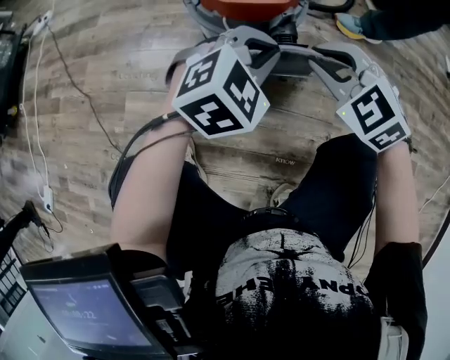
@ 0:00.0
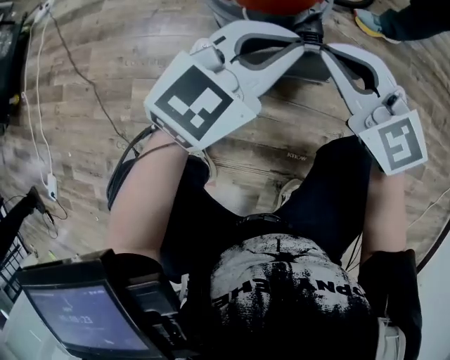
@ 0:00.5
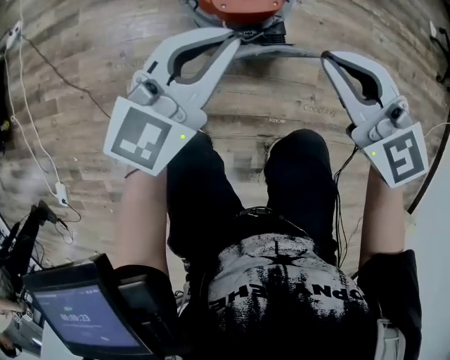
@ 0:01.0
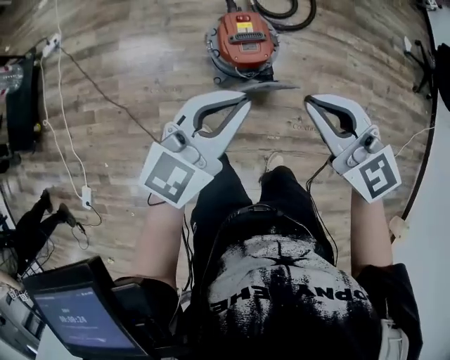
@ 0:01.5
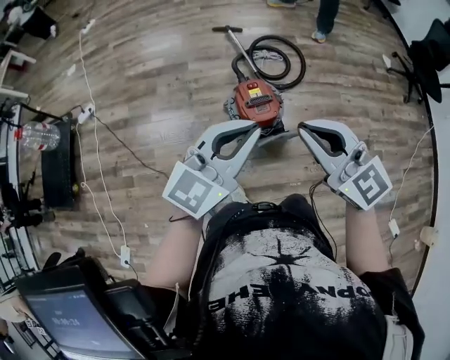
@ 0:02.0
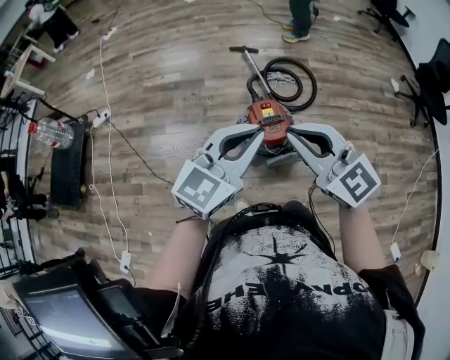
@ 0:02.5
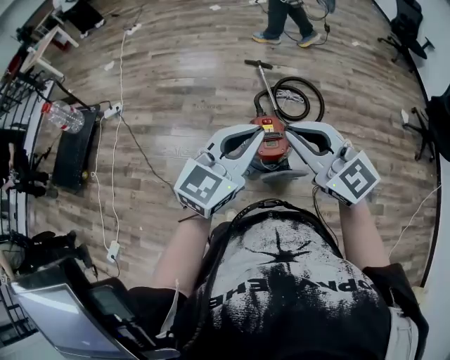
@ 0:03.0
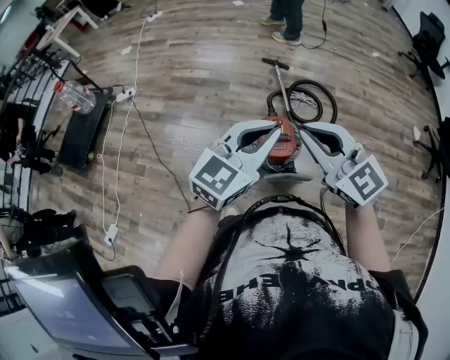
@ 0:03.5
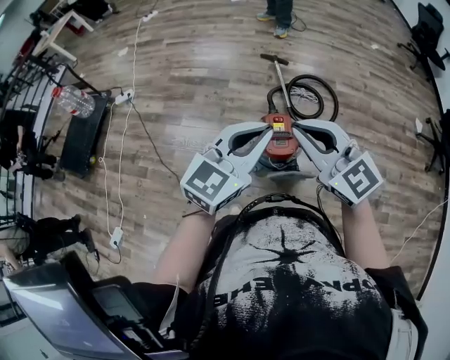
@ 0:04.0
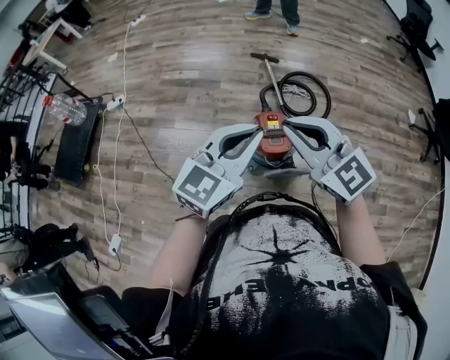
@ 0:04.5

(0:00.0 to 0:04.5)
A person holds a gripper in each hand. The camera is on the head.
0:00.0 - 0:02.0: Both grippers travel together upward, roughly 60 cm. The left gripper angles its fingers upward, by roughly 40 degrees; the right gripper angles its fingers upward, by about 40 degrees.
0:02.0 - 0:04.5: The left gripper shifts by some 5 cm, while the right gripper travels forward by approximately 5 cm.

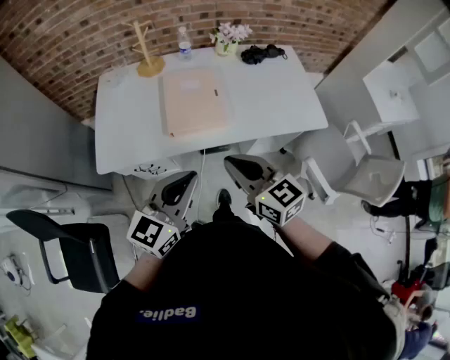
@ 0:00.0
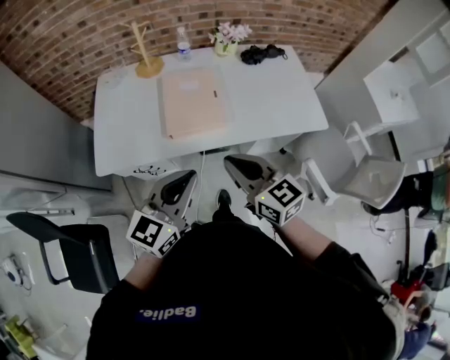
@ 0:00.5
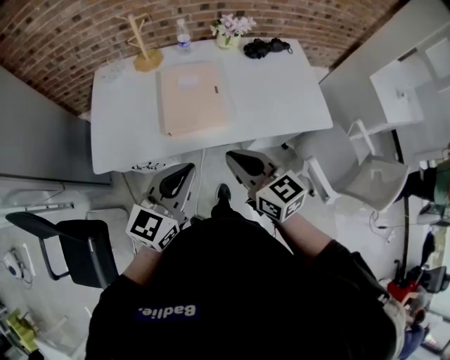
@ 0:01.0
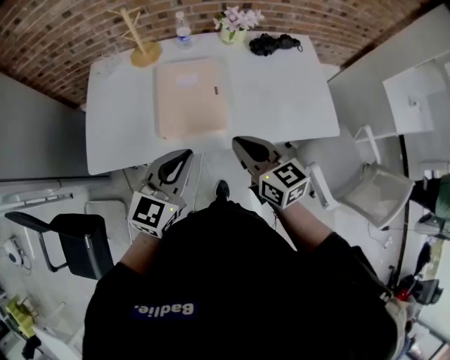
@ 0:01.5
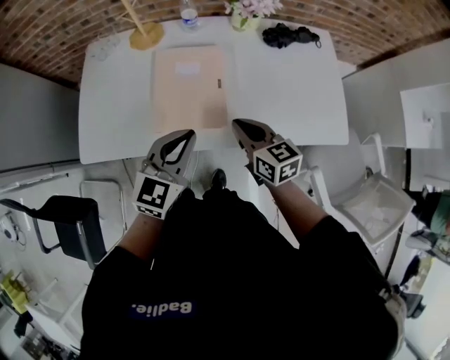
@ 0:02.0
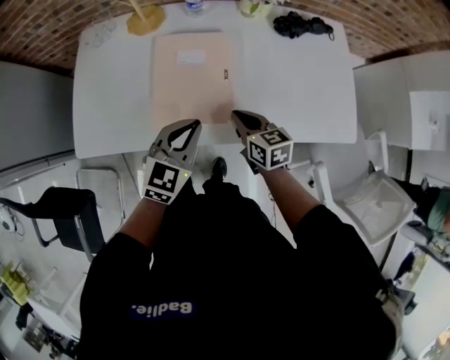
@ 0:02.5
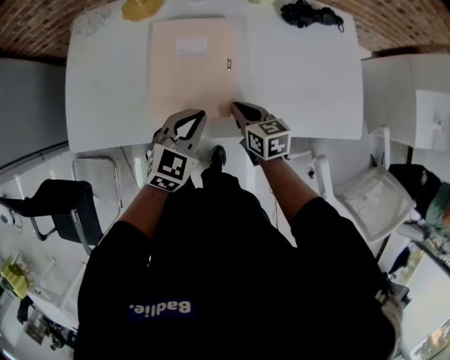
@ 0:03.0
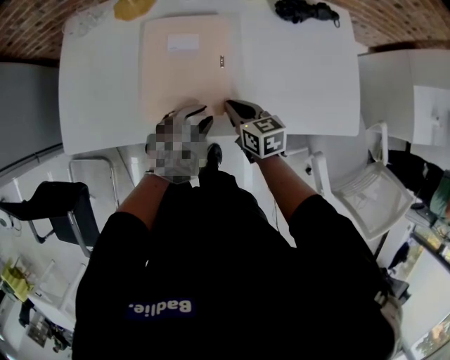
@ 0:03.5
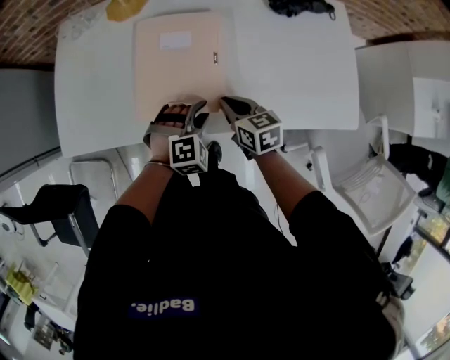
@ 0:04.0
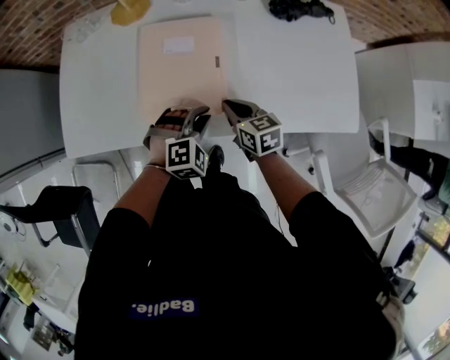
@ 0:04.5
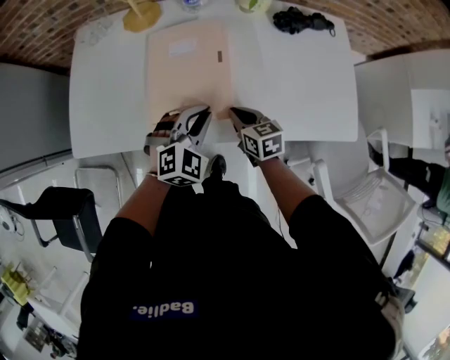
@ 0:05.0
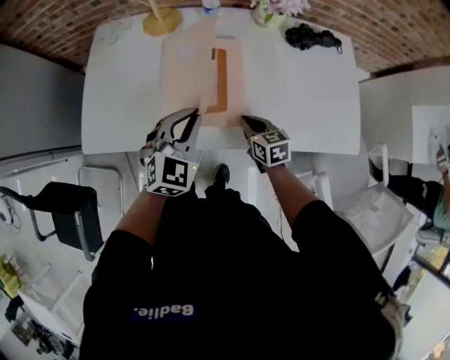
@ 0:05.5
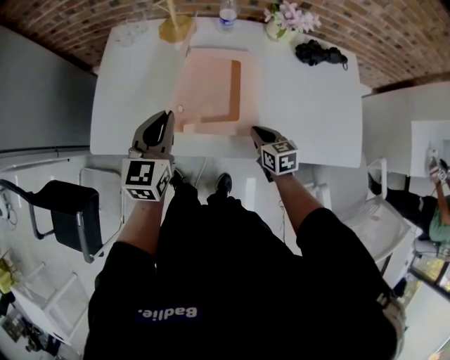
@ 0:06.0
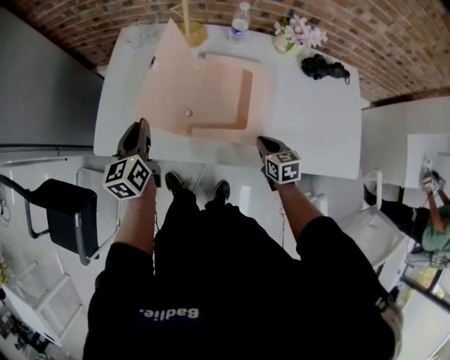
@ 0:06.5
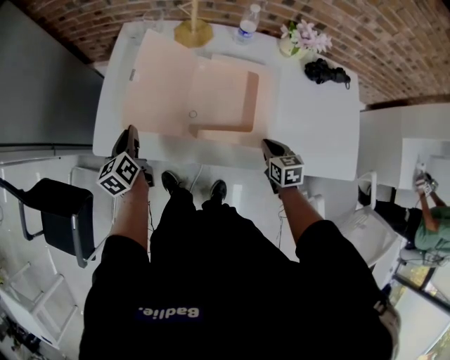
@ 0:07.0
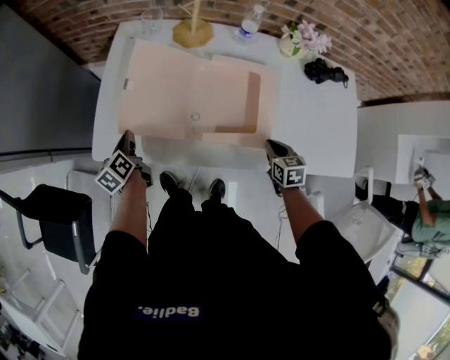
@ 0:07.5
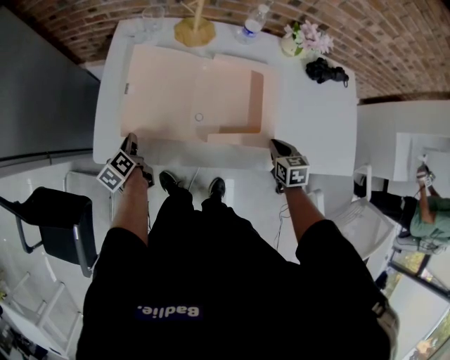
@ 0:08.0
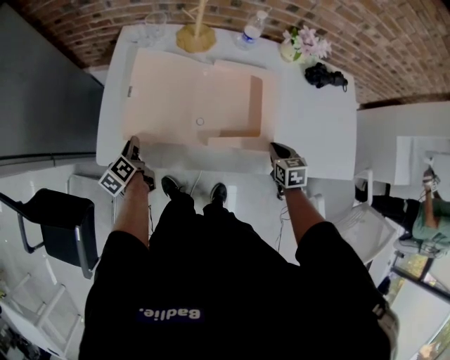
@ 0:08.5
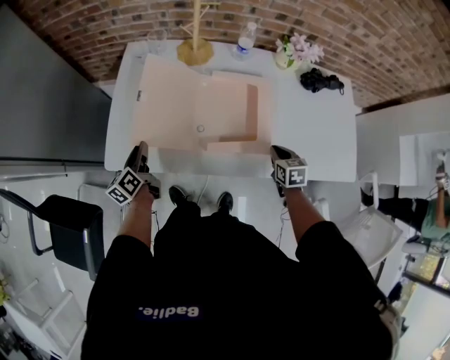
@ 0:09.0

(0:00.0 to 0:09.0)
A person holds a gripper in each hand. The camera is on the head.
0:00.0 - 0:02.0: The grippers both shift forward and downward by approximately 25 cm.
0:02.0 - 0:04.5: The grippers both shift downward by about 15 cm. The left gripper rotates around the line of its fingers by approximately 40 degrees, clockwise from behind, and opens, then closes again.
0:04.5 - 0:07.0: The left gripper moves to the left, approximately 40 cm, and rolls counterclockwise, seen from behind, by about 100 degrees.
0:07.0 - 0:09.0: The left gripper goes downward and returns, some 10 cm each way.

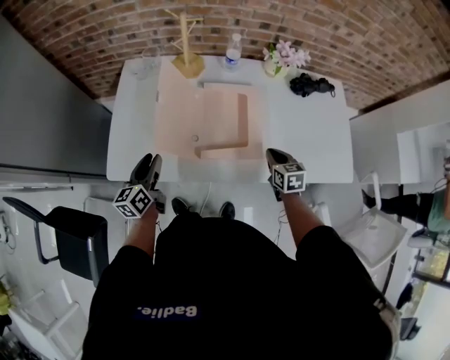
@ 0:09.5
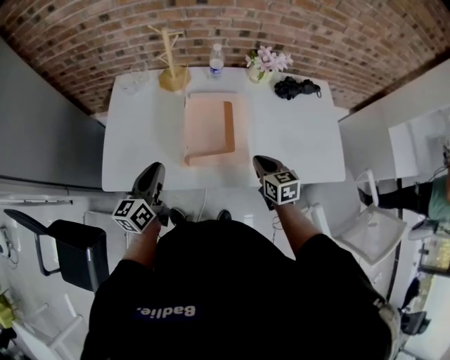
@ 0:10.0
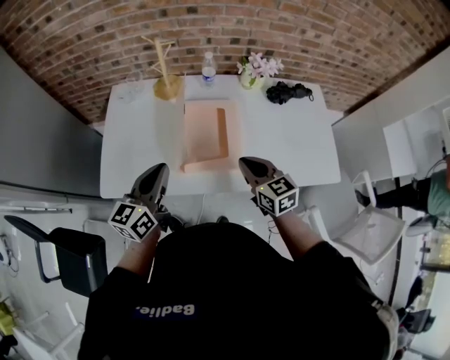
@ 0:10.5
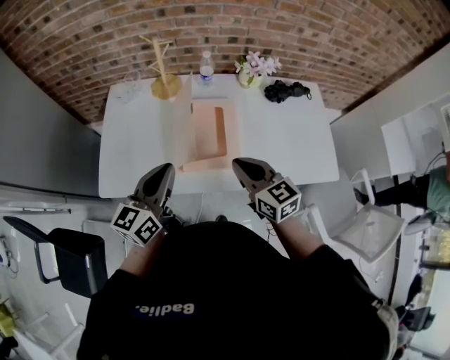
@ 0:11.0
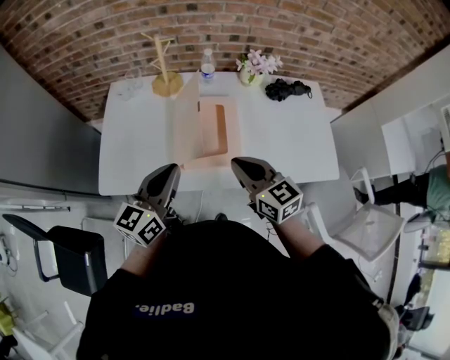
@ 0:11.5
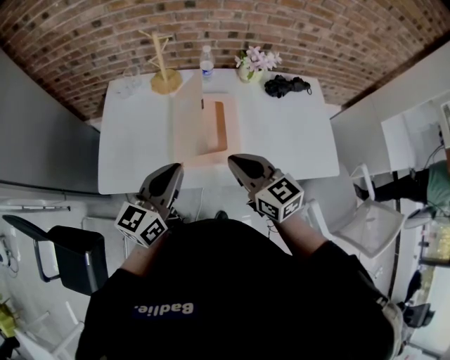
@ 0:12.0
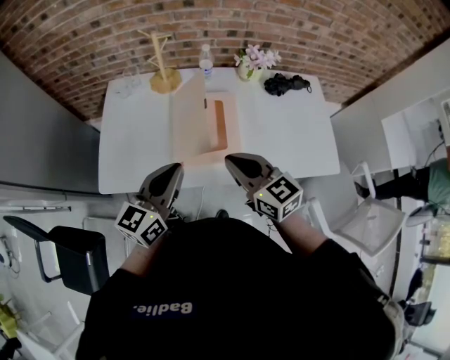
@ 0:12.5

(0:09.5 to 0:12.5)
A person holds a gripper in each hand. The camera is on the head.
0:09.5 - 0:11.0: The left gripper goes some 25 cm upward and to the right, swivels roughly 20 degrees, and closes. The right gripper is displaced upward and to the left by some 20 cm, and rotates approximately 30 degrees.
0:11.0 - 0:12.5: There are only small adjustments of the grippers.

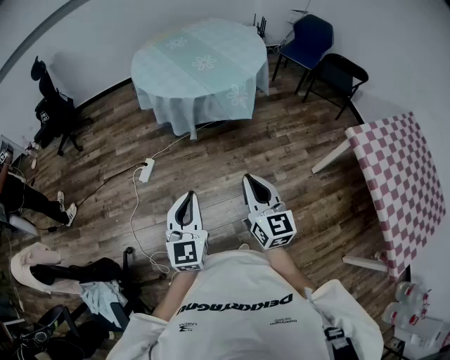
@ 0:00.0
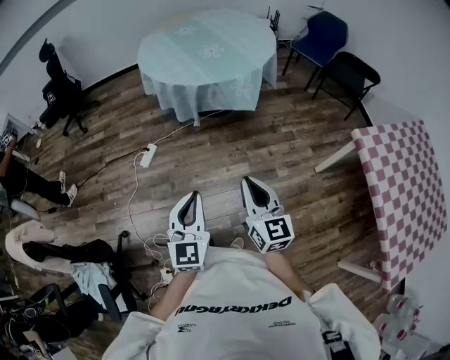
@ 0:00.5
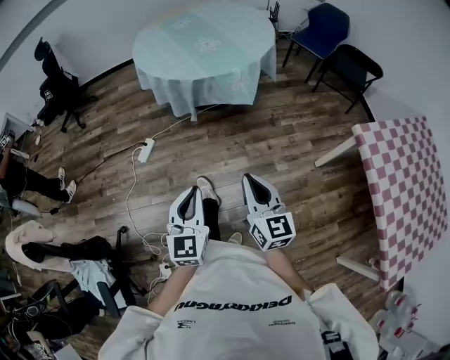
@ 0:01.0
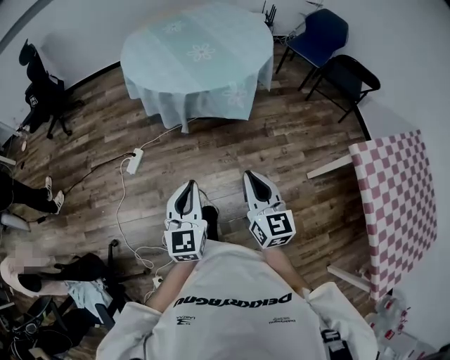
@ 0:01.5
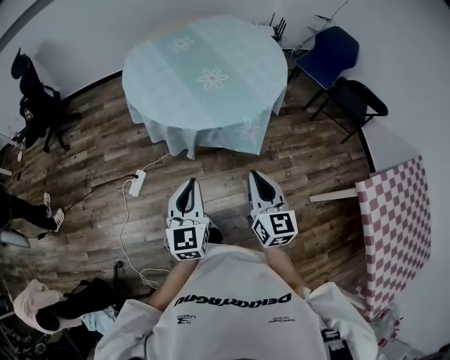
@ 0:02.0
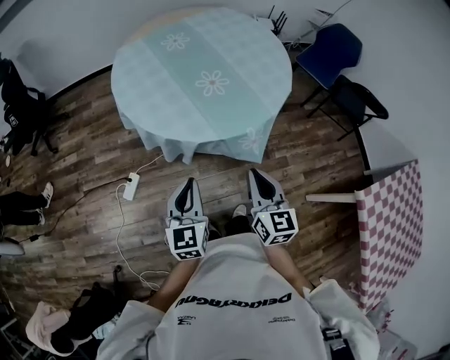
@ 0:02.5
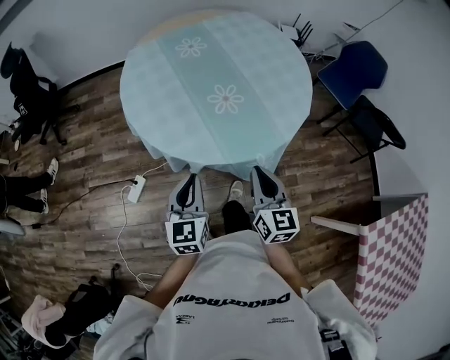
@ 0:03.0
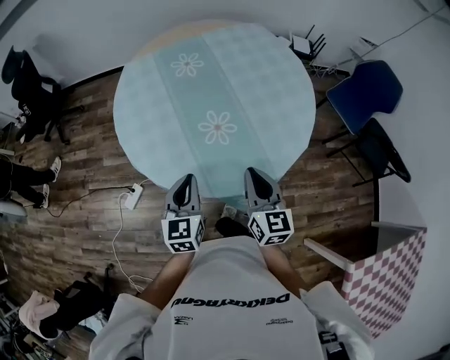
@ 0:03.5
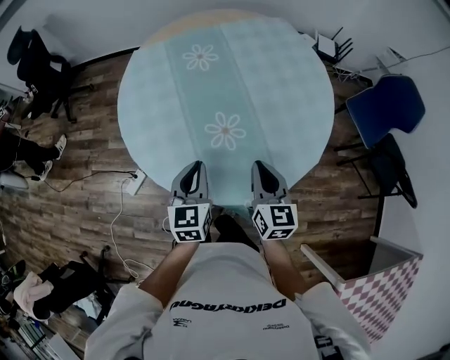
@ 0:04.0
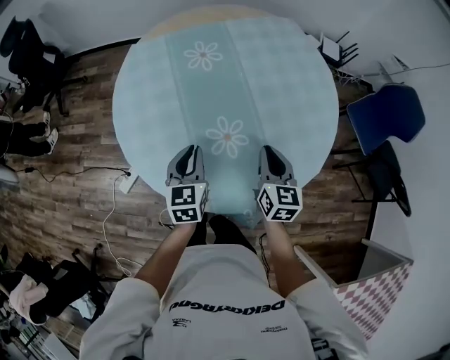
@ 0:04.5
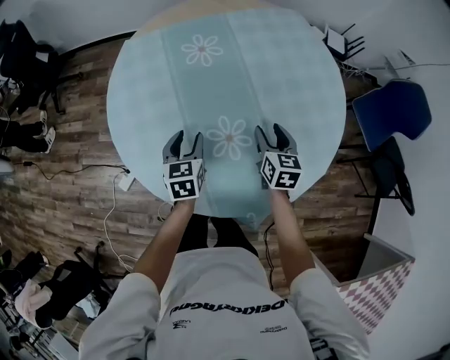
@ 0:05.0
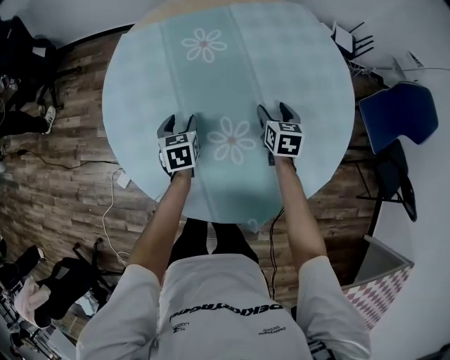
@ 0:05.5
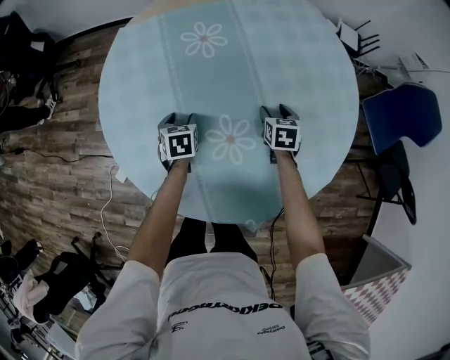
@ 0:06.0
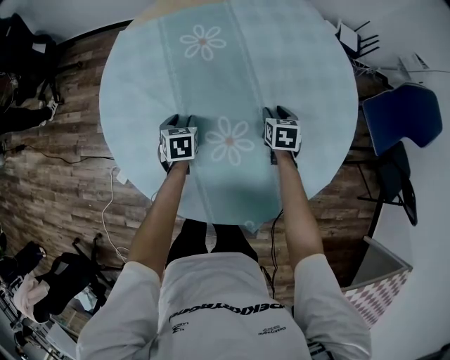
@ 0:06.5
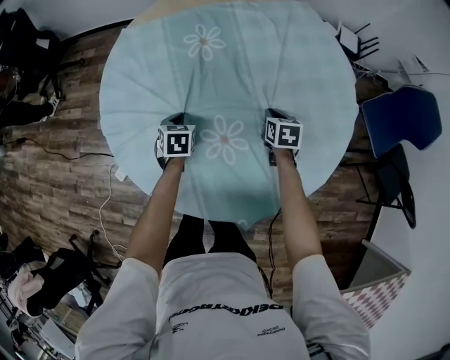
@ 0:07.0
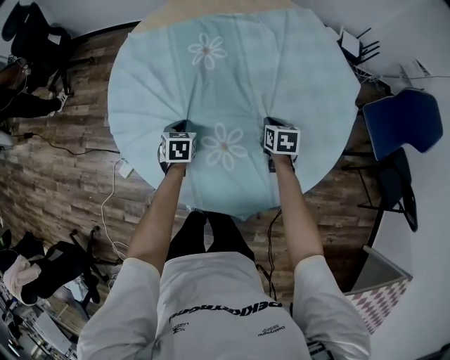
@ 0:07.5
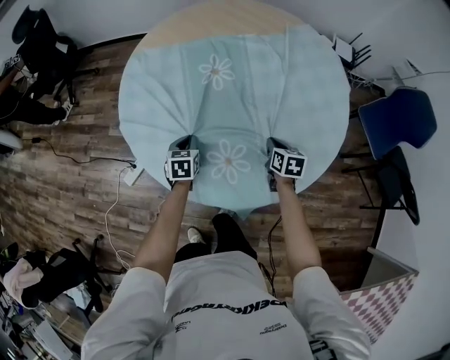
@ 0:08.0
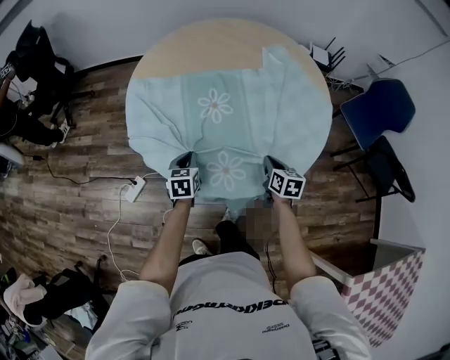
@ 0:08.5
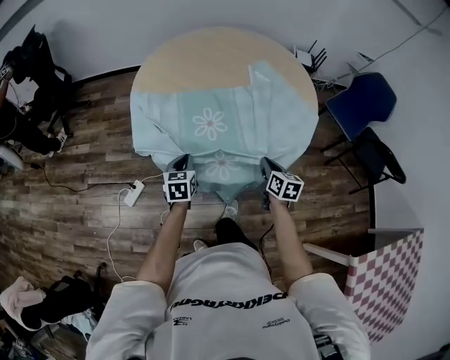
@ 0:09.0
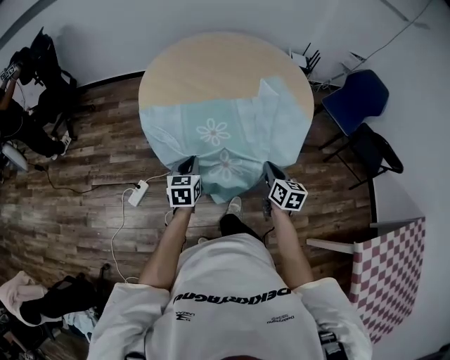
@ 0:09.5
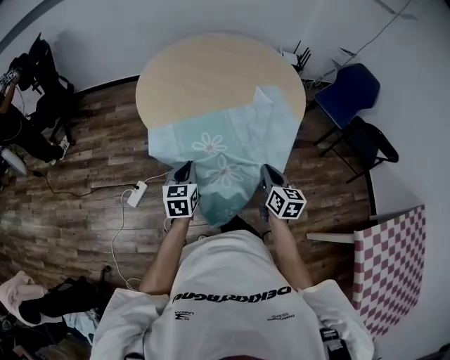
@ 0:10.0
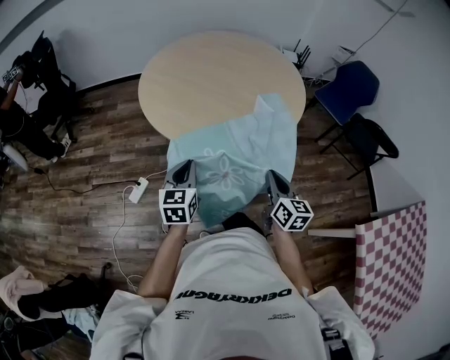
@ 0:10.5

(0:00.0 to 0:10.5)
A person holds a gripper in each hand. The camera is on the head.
0:00.0 - 0:02.0: The grippers both shift forward by roughly 35 cm.
0:02.0 - 0:04.0: The two grippers travel together, forward, approximately 50 cm.
0:04.0 - 0:06.5: The right gripper travels forward and downward by approximately 35 cm, points its fingers about 30 degrees further downward, and opens its fingers. Meanwhile the left gripper shifts approximately 35 cm downward and forward, changes its angle by about 30 degrees, and opens.
0:06.5 - 0:08.5: The left gripper goes some 25 cm backward and upward, and closes up. The right gripper goes some 25 cm backward, rotates approximately 20 degrees, and closes.
0:08.5 - 0:10.5: The grippers both shift backward and upward by roughly 35 cm. The left gripper rotates approximately 20 degrees. Meanwhile the right gripper changes its angle by some 30 degrees.
